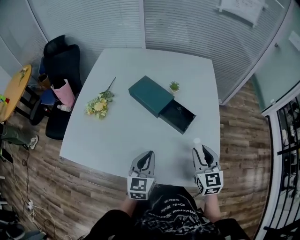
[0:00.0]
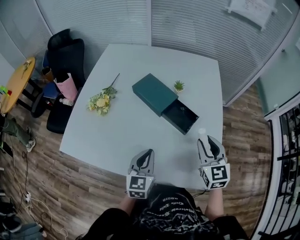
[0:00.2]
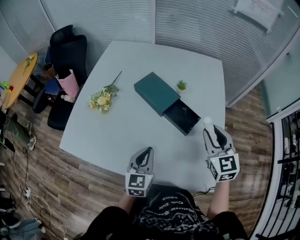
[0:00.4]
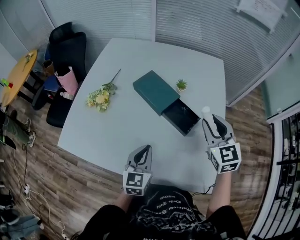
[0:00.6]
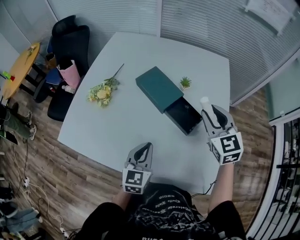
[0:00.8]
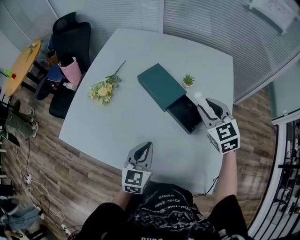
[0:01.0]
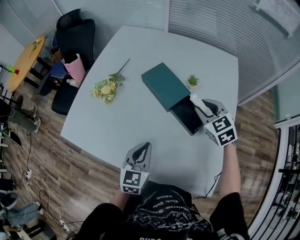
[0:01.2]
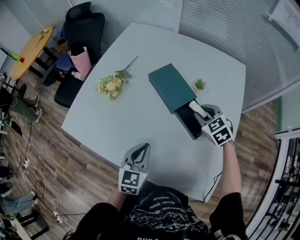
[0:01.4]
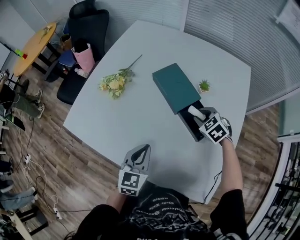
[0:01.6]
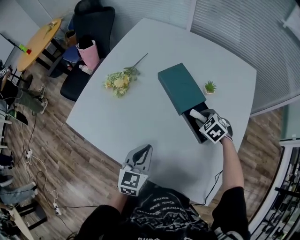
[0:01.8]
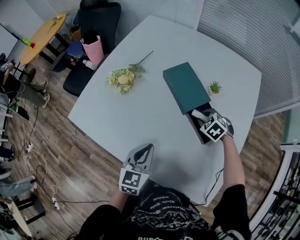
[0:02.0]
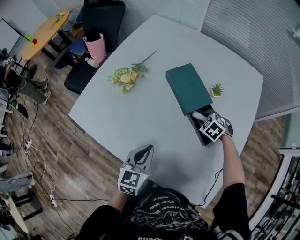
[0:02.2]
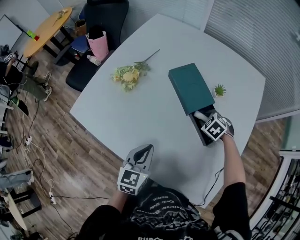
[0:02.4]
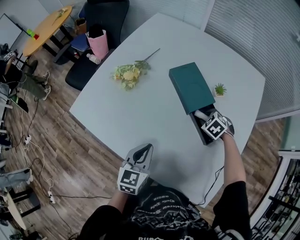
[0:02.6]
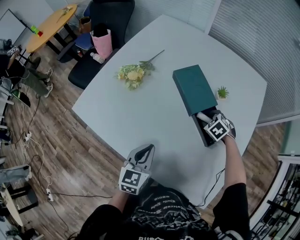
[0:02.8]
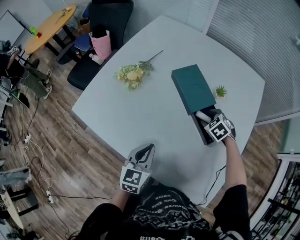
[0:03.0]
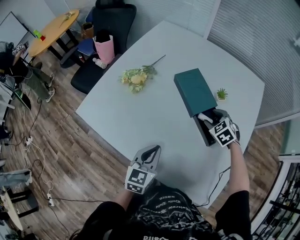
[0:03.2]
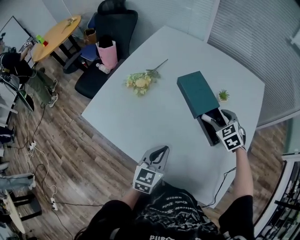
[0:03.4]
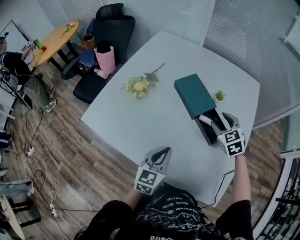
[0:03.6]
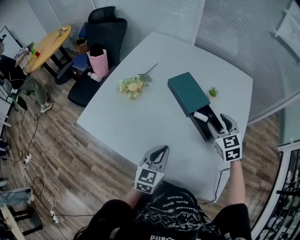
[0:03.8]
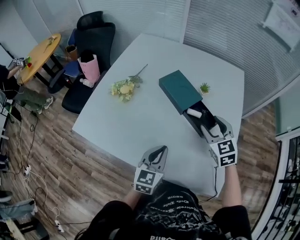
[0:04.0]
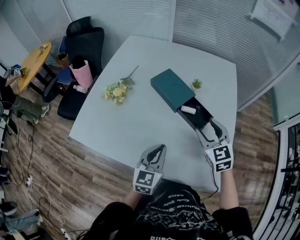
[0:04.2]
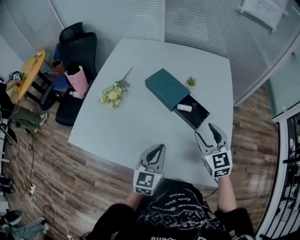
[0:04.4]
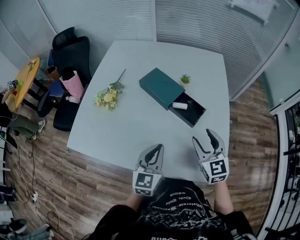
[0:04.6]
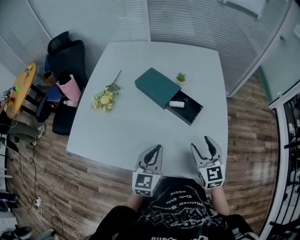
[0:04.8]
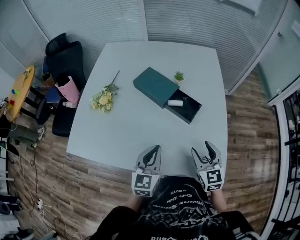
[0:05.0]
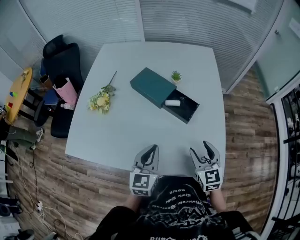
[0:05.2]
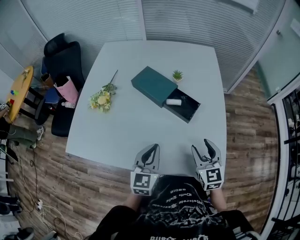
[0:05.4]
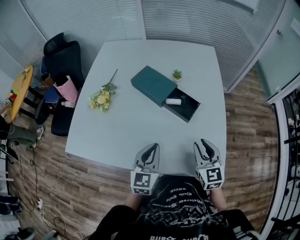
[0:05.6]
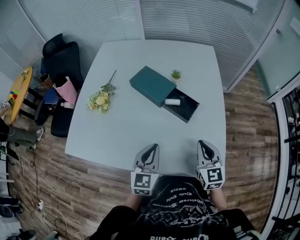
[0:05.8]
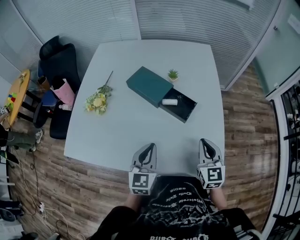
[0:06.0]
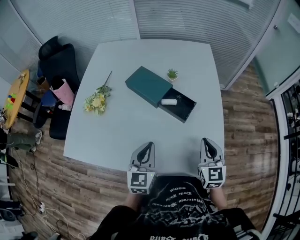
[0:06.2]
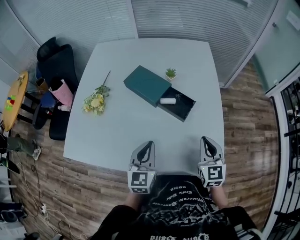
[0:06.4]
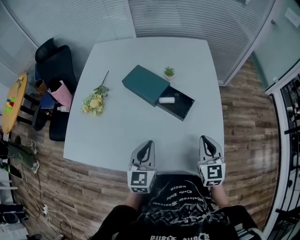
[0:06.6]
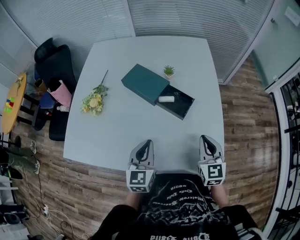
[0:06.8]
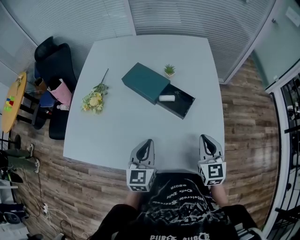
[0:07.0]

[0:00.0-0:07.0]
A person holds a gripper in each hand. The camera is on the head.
0:00.0 to 0:01.4: The right gripper shifts about 25 cm forward, and rotates some 50 degrees. The left gripper shifts about 5 cm forward.
0:01.4 to 0:02.8: The right gripper moves downward, approximately 15 cm, changes its angle by roughly 30 degrees, and opens up.
0:02.8 to 0:04.2: The left gripper is displaced upward by approximately 5 cm. The right gripper heads upward and backward, covering about 25 cm, and points its fingers roughly 40 degrees further upward.
0:04.2 to 0:05.6: The right gripper goes some 15 cm backward and to the right, and closes up.
0:05.6 to 0:07.0: The right gripper closes its fingers.

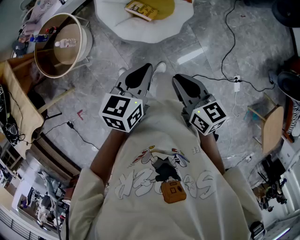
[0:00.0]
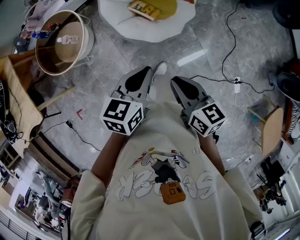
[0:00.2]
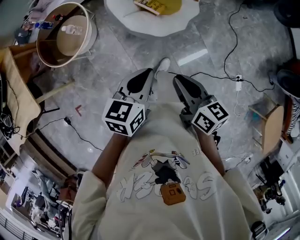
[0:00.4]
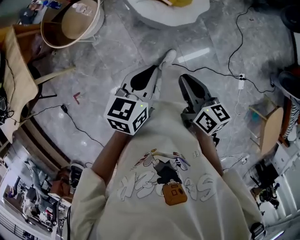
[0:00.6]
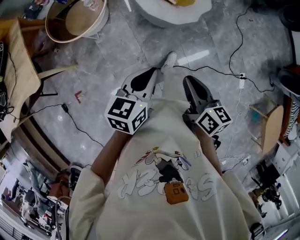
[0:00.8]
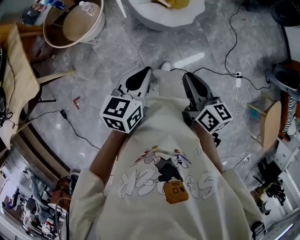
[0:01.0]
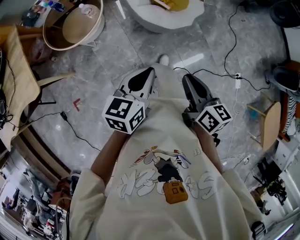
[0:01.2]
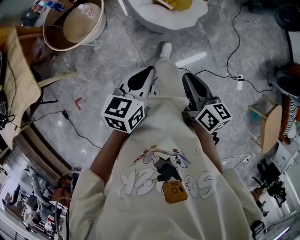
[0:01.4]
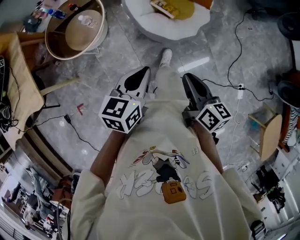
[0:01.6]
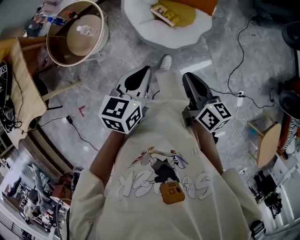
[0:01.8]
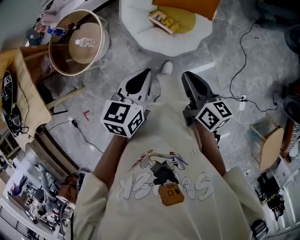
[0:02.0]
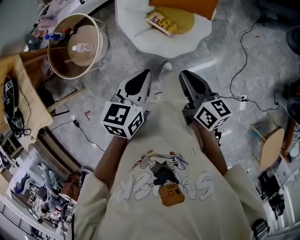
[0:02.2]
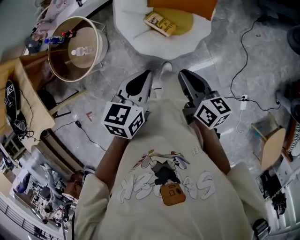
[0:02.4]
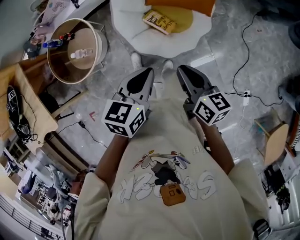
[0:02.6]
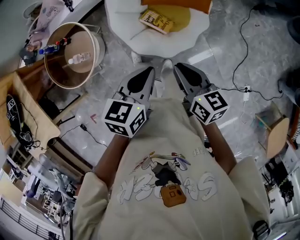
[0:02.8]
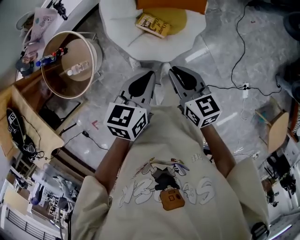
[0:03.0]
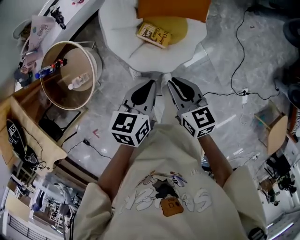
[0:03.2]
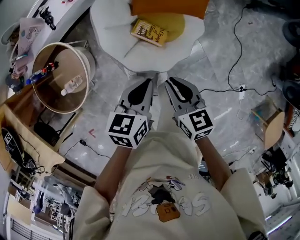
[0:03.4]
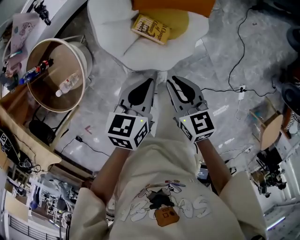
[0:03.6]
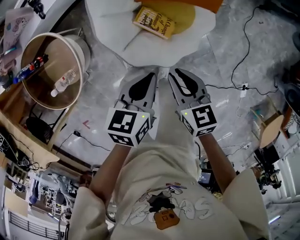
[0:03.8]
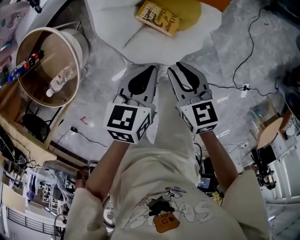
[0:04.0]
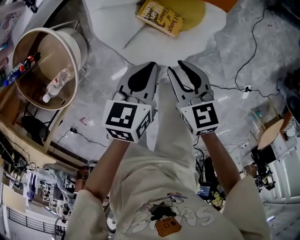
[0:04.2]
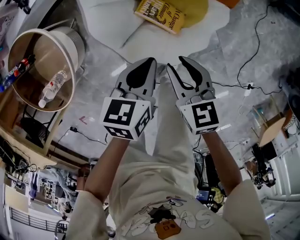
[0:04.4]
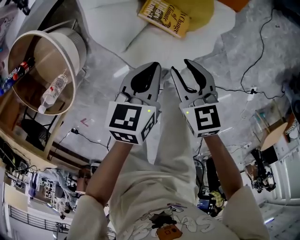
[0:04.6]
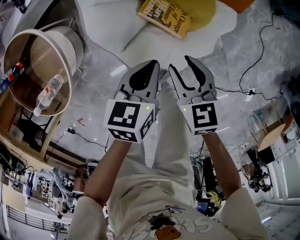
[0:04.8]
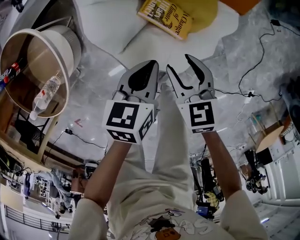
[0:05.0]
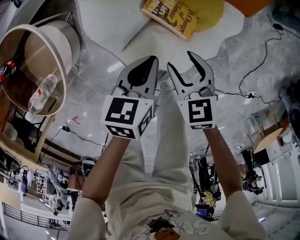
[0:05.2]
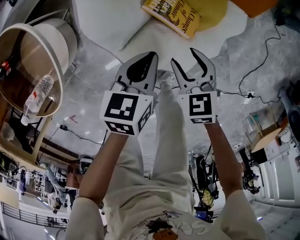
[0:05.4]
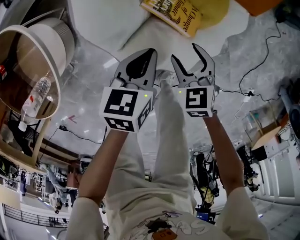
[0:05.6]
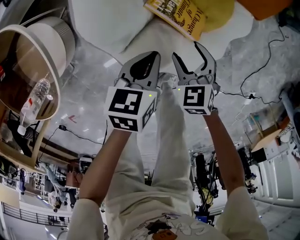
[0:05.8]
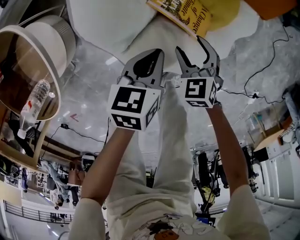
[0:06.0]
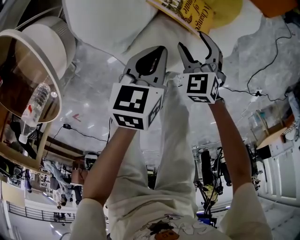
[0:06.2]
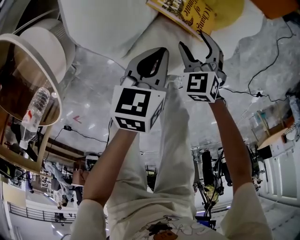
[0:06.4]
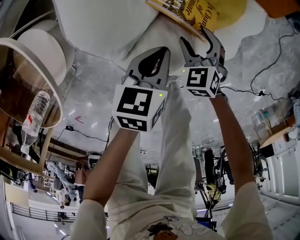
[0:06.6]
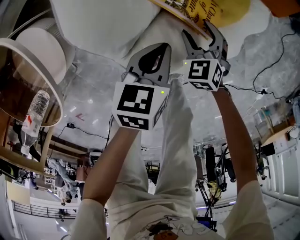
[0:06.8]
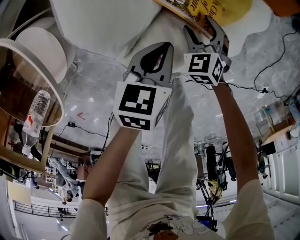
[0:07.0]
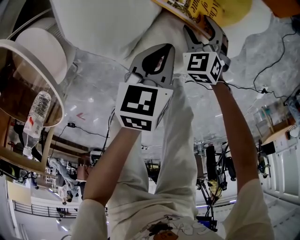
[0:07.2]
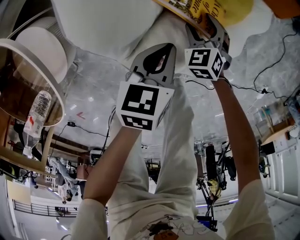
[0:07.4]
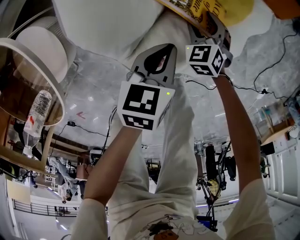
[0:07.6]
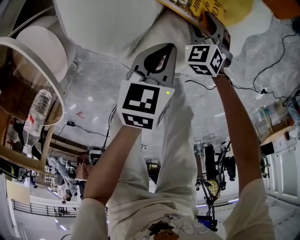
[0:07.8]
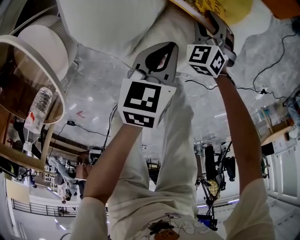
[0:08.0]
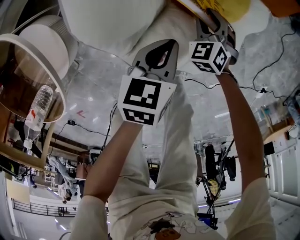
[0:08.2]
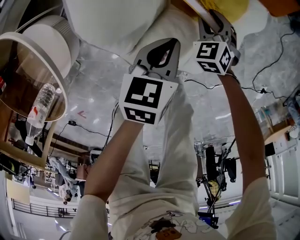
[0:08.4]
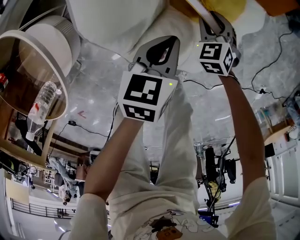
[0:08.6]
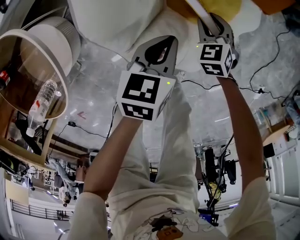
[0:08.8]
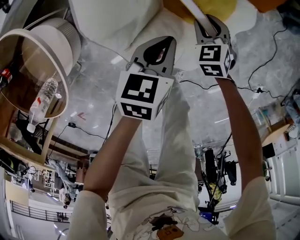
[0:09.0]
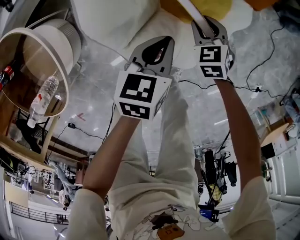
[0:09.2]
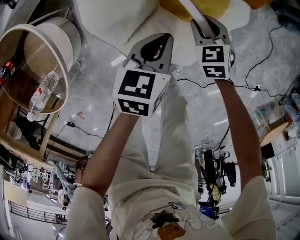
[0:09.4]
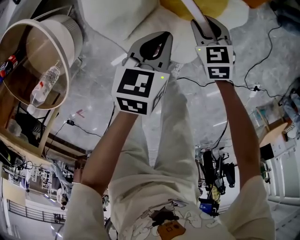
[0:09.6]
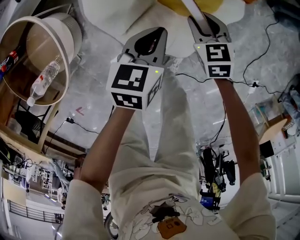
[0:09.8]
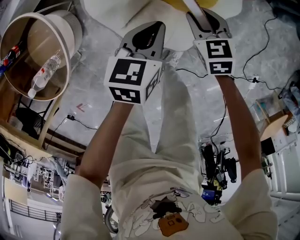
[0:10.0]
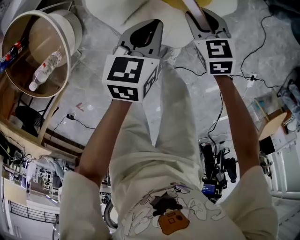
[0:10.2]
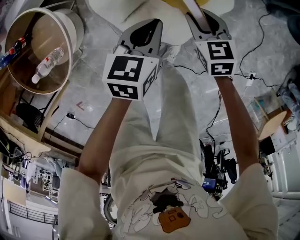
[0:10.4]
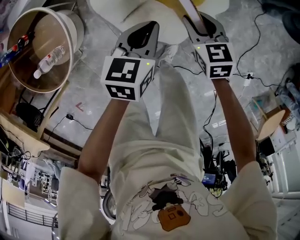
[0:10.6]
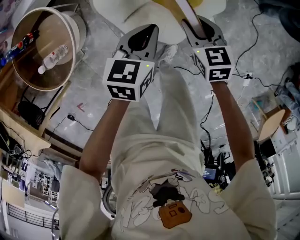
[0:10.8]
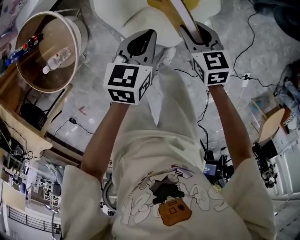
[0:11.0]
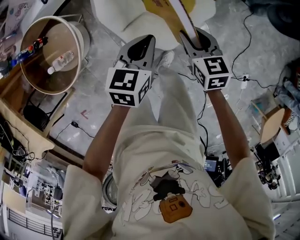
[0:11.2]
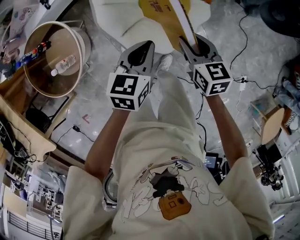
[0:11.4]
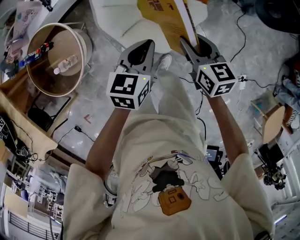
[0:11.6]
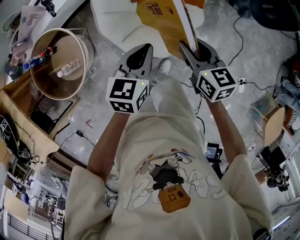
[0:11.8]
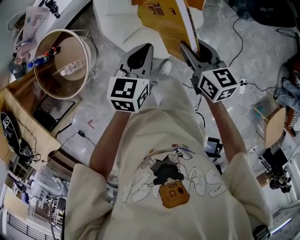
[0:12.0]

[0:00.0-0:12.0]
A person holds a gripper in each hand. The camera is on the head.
0:00.0 to 0:01.6: Both grippers move to the left and backward, some 20 cm.
0:01.6 to 0:03.0: The two grippers go about 30 cm forward.
0:03.0 to 0:04.4: Both grippers move downward and forward, some 30 cm.
0:04.4 to 0:06.0: Both grippers move downward, approximately 20 cm. The right gripper rotates approximately 30 degrees, and opens its fingers.
0:06.0 to 0:07.6: The right gripper heads downward and forward, covering about 15 cm.
0:07.6 to 0:09.0: The grippers both shift upward by roughly 10 cm. The right gripper closes up.
0:09.0 to 0:10.4: Both grippers travel together upward, approximately 20 cm.
0:10.4 to 0:12.0: The two grippers go some 25 cm upward. The right gripper turns by roughly 30 degrees.

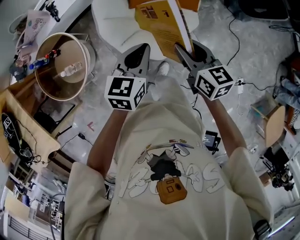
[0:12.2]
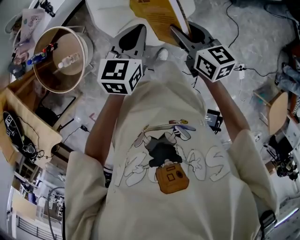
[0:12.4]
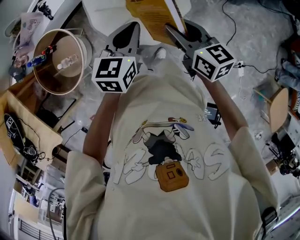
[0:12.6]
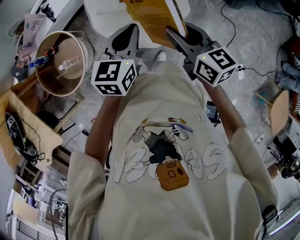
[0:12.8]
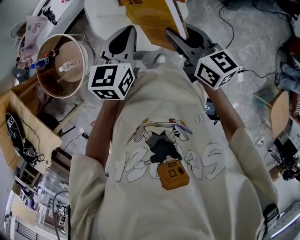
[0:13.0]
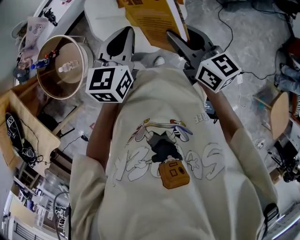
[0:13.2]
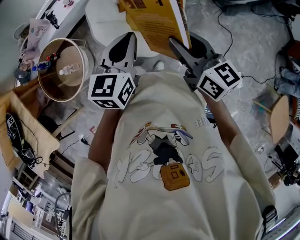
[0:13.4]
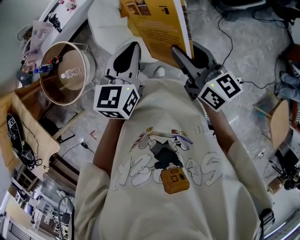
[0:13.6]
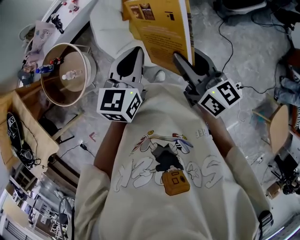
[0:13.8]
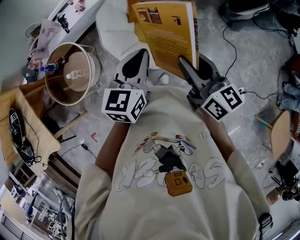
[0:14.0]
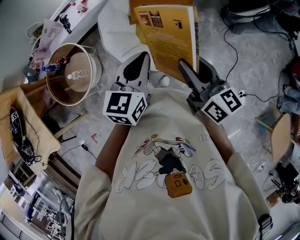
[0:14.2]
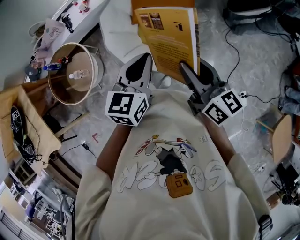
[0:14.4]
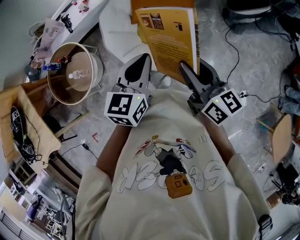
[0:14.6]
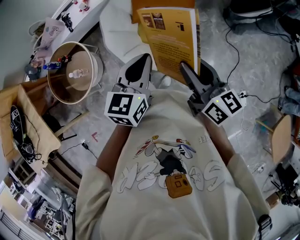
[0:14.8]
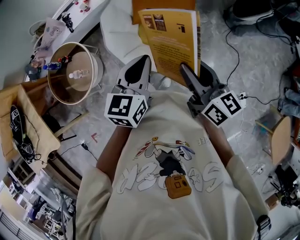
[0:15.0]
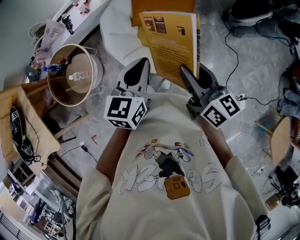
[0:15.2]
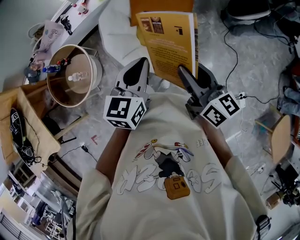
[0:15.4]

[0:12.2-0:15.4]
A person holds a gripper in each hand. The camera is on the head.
0:12.2 to 0:13.8: The left gripper goes approximately 15 cm upward, backward and to the right. The right gripper moves upward and backward, some 20 cm.
0:13.8 to 0:15.4: The grippers stay close to where they were, moving slightly.

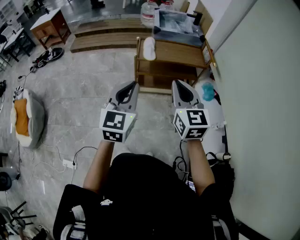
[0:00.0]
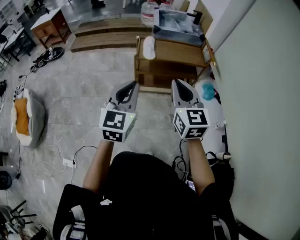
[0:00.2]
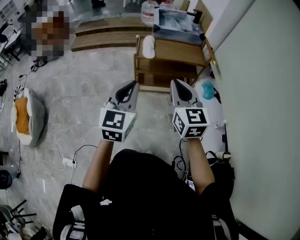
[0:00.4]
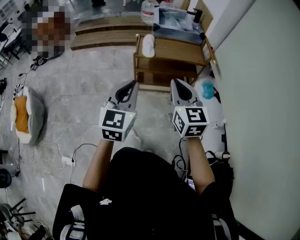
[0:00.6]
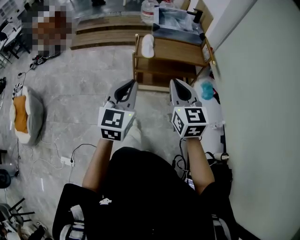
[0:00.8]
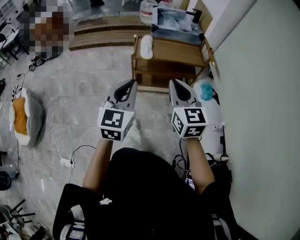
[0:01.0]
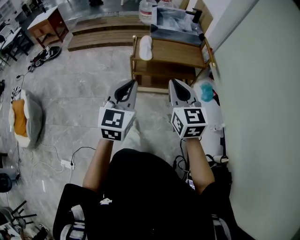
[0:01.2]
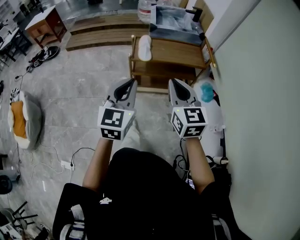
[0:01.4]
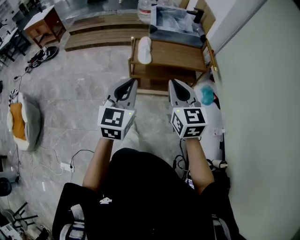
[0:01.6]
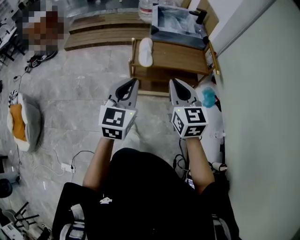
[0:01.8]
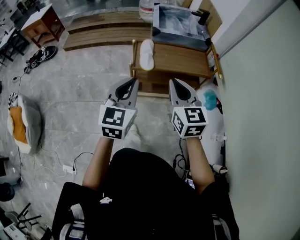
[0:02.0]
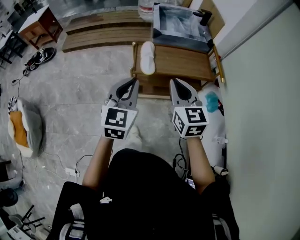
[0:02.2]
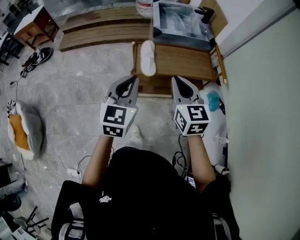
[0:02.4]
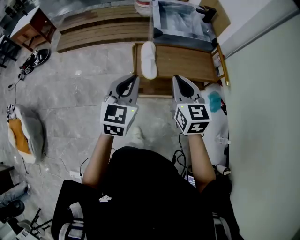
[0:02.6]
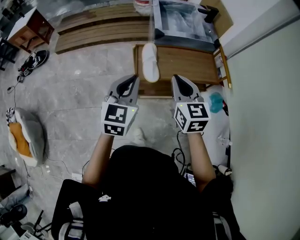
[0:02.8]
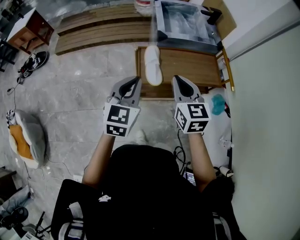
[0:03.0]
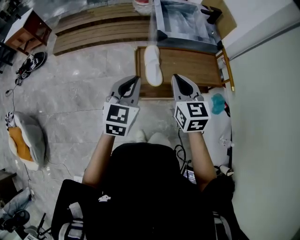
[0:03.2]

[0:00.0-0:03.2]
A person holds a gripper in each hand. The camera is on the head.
0:00.0 to 0:01.6: The two grippers go roughly 10 cm forward.
0:01.6 to 0:03.2: The grippers both shift forward by roughly 30 cm.
